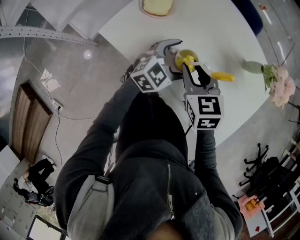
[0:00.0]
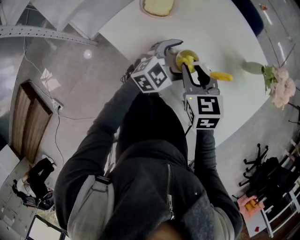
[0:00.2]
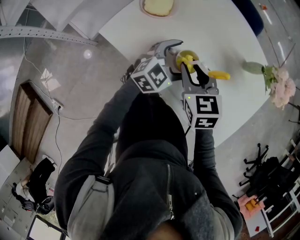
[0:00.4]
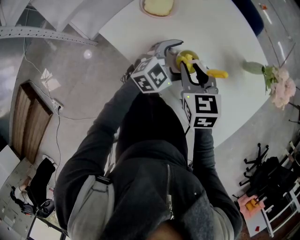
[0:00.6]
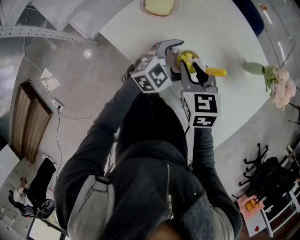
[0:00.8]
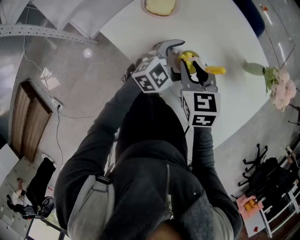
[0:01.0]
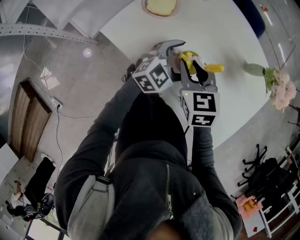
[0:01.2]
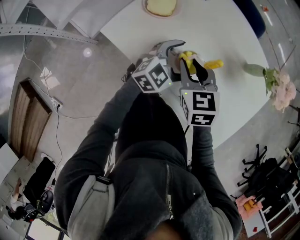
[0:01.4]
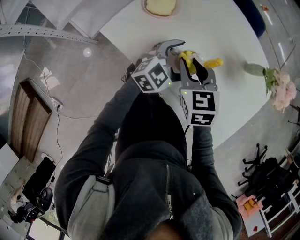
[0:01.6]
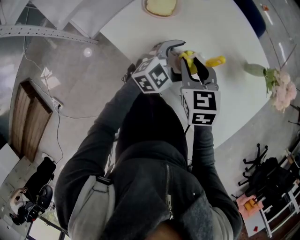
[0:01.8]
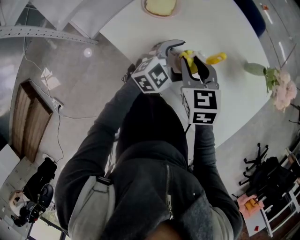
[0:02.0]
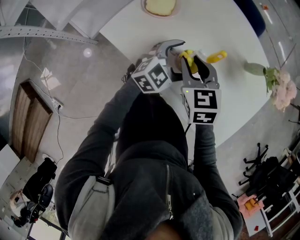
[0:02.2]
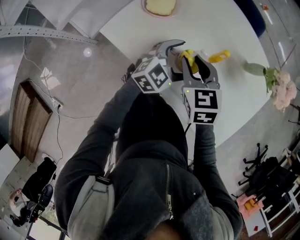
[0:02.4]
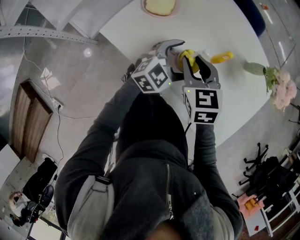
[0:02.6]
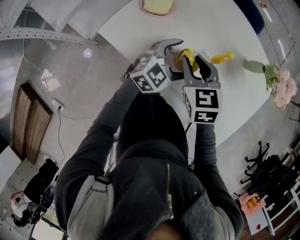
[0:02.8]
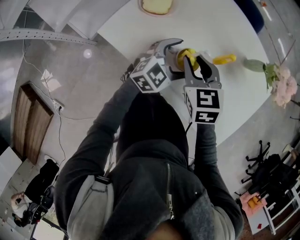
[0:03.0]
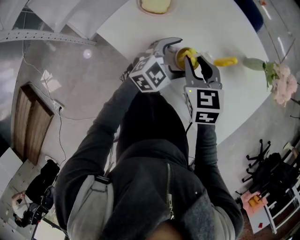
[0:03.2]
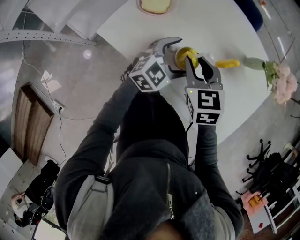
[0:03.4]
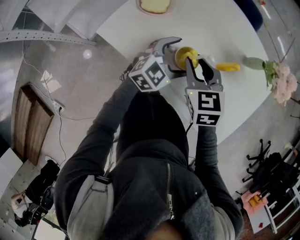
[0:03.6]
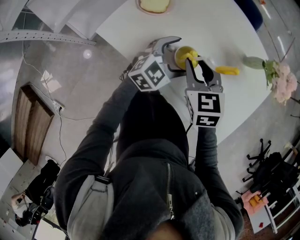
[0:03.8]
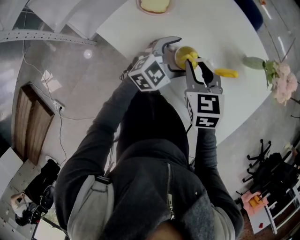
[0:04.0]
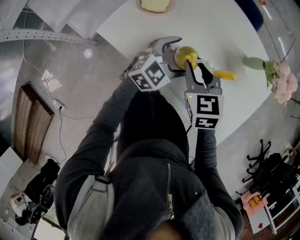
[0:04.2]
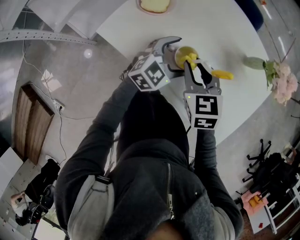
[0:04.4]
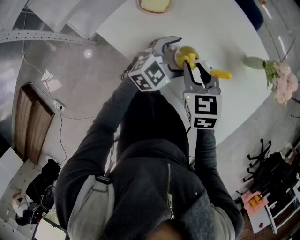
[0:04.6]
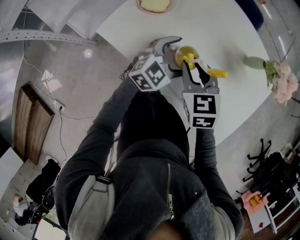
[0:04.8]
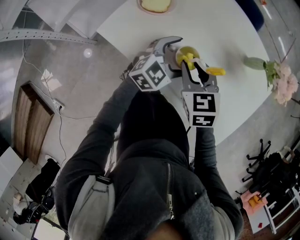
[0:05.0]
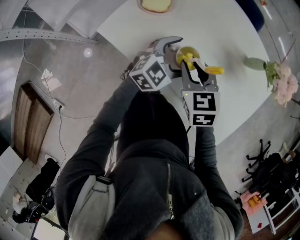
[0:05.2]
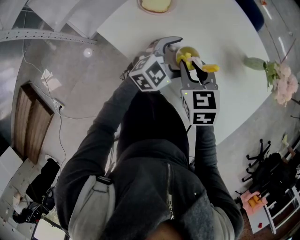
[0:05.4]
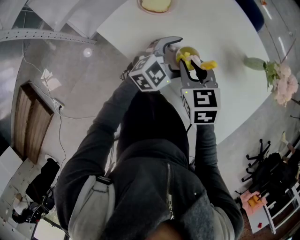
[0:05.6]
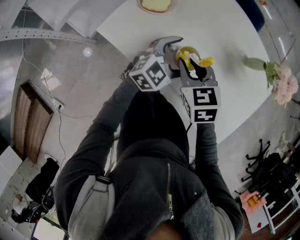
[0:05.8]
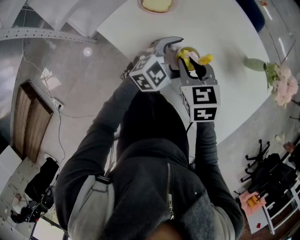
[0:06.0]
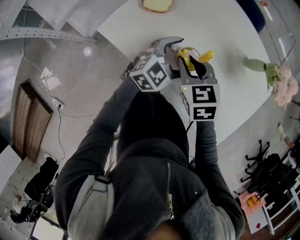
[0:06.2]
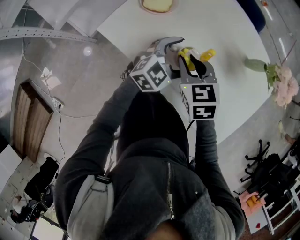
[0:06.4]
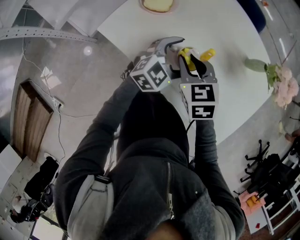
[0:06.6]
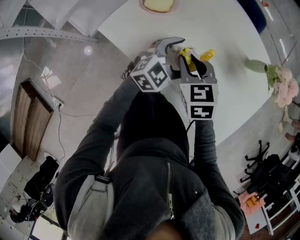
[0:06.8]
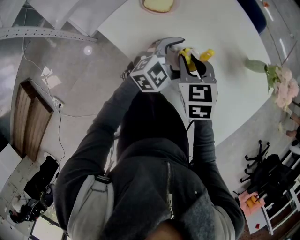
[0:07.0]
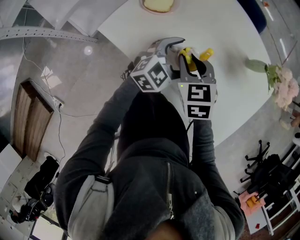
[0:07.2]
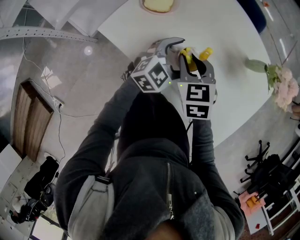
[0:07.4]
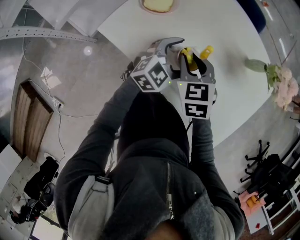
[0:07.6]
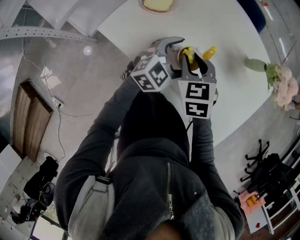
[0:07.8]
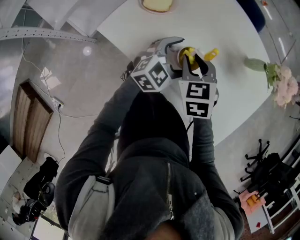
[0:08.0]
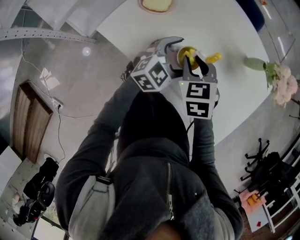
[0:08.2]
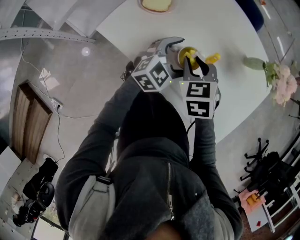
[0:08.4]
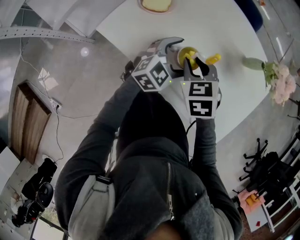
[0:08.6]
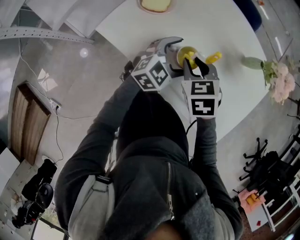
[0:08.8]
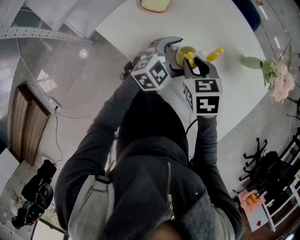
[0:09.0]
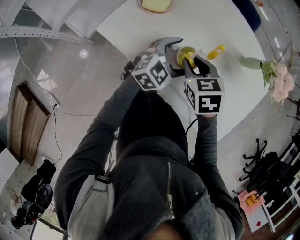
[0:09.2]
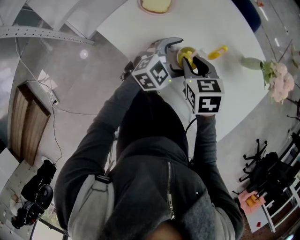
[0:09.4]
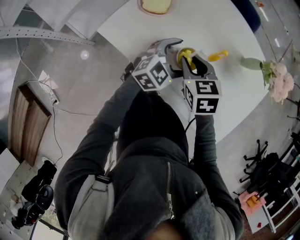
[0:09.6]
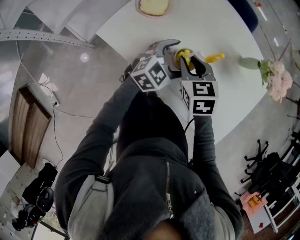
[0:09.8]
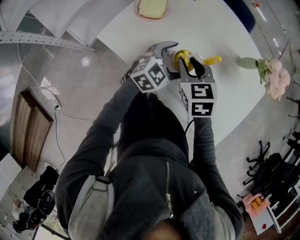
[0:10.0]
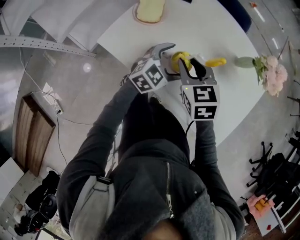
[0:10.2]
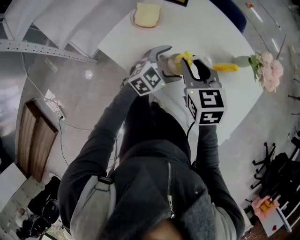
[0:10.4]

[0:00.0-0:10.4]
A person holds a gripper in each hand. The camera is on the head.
0:00.0 to 0:09.0: The grippers make only small movements.
0:09.0 to 0:10.4: The right gripper moves upward, roughly 10 cm, and swivels approximately 20 degrees.

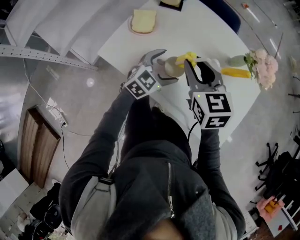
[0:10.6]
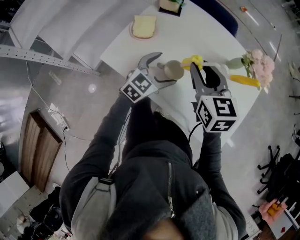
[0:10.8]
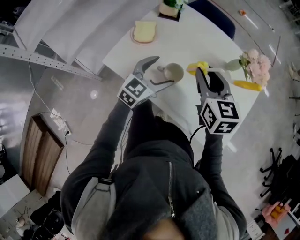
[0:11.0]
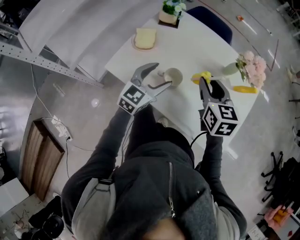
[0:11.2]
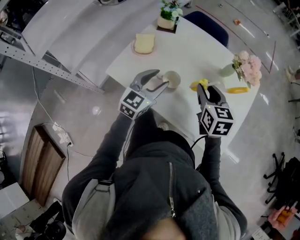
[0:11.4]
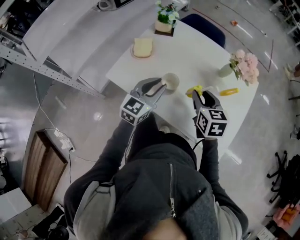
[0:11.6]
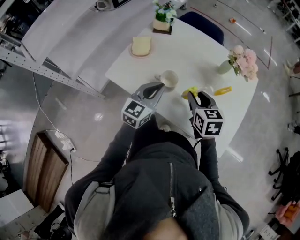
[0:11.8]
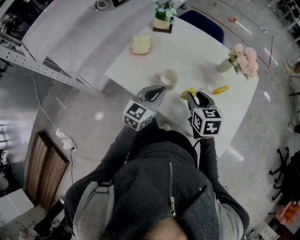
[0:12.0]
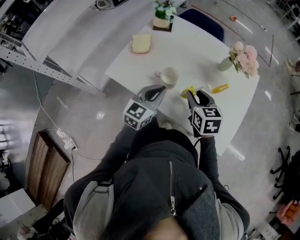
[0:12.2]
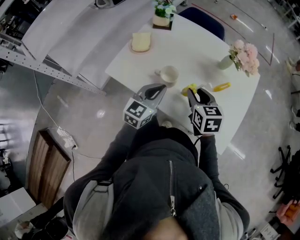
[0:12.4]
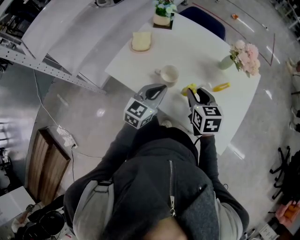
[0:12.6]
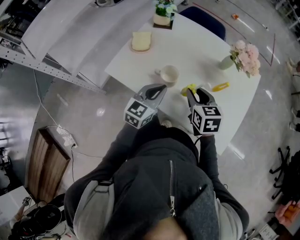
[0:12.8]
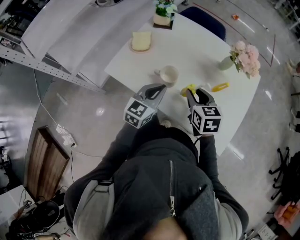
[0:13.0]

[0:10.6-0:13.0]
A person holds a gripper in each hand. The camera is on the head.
0:10.6 to 0:11.8: The right gripper moves to the right and downward, roughly 10 cm. Meanwhile the left gripper moves upward and backward, approximately 10 cm, turns by roughly 20 degrees, and closes its fingers.
0:11.8 to 0:13.0: There are only small adjustments of the grippers.

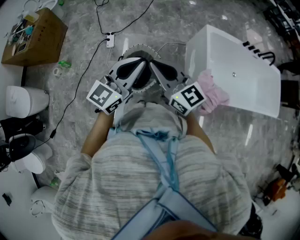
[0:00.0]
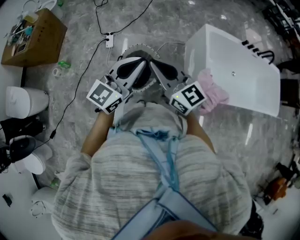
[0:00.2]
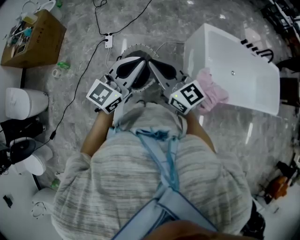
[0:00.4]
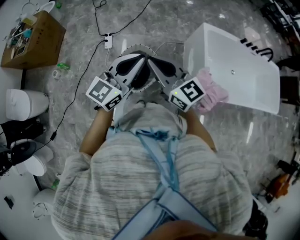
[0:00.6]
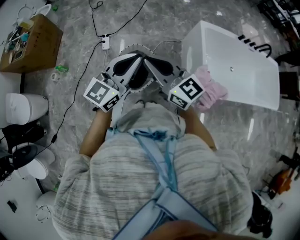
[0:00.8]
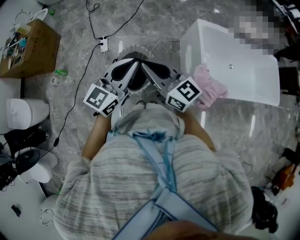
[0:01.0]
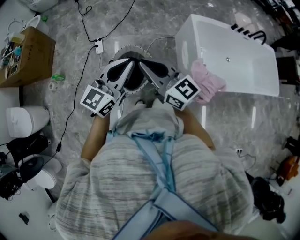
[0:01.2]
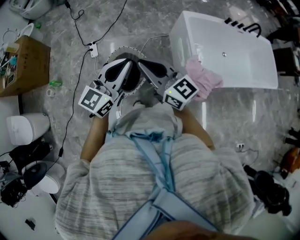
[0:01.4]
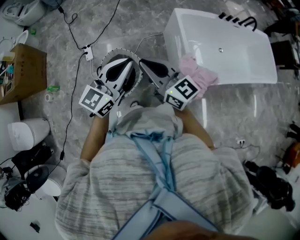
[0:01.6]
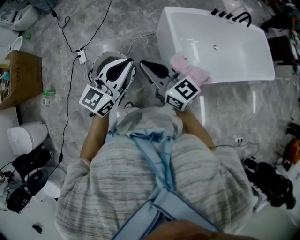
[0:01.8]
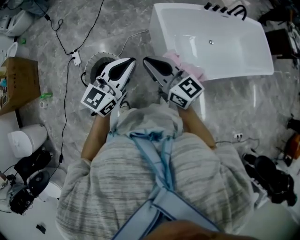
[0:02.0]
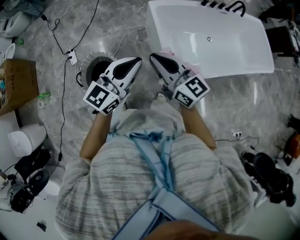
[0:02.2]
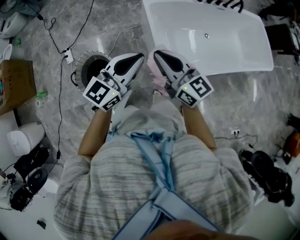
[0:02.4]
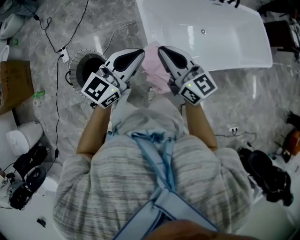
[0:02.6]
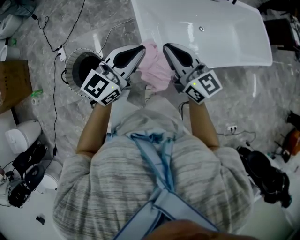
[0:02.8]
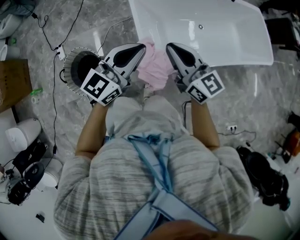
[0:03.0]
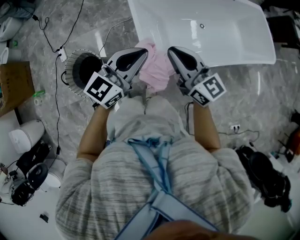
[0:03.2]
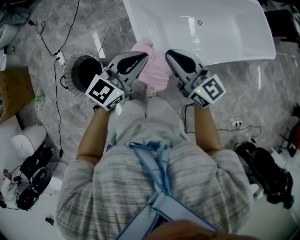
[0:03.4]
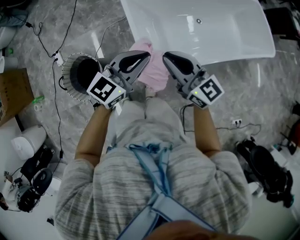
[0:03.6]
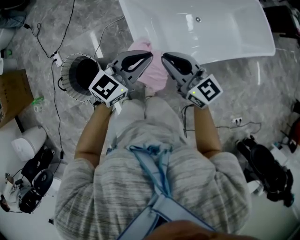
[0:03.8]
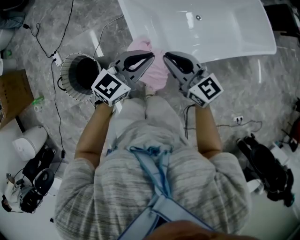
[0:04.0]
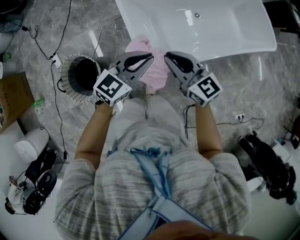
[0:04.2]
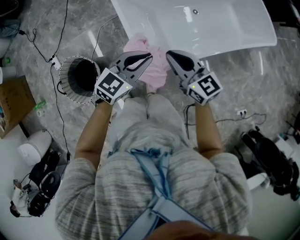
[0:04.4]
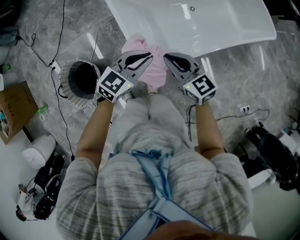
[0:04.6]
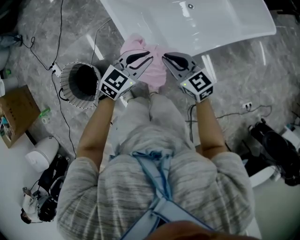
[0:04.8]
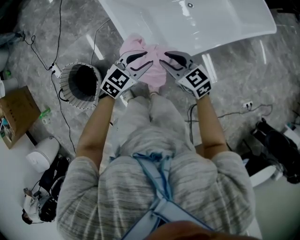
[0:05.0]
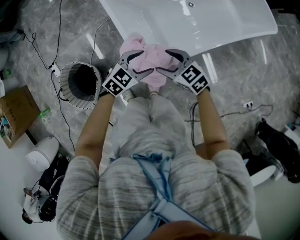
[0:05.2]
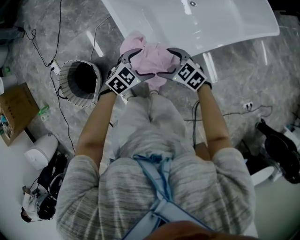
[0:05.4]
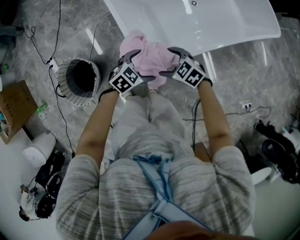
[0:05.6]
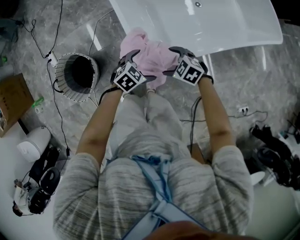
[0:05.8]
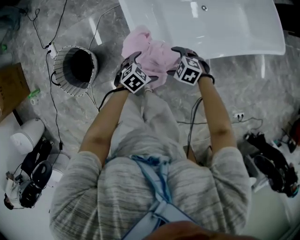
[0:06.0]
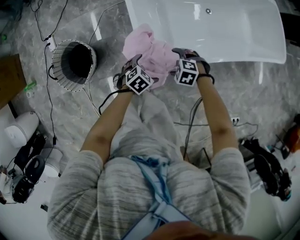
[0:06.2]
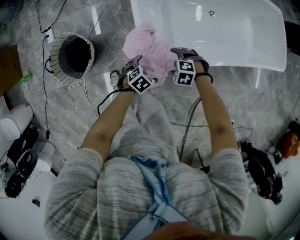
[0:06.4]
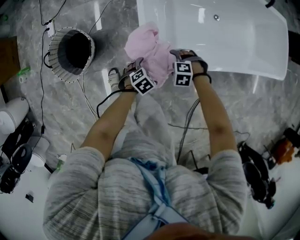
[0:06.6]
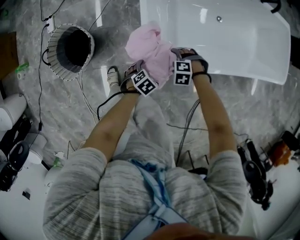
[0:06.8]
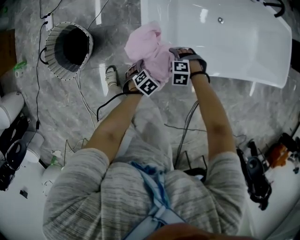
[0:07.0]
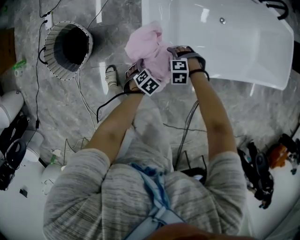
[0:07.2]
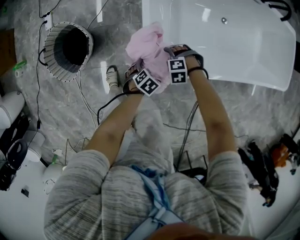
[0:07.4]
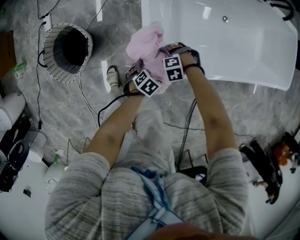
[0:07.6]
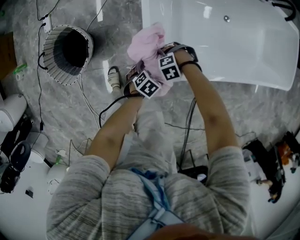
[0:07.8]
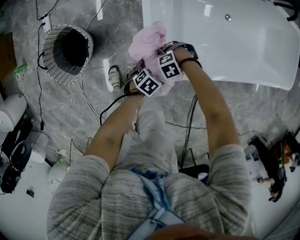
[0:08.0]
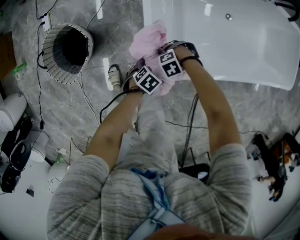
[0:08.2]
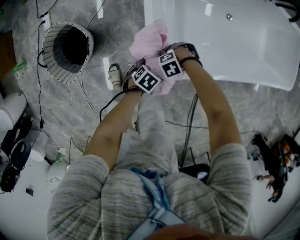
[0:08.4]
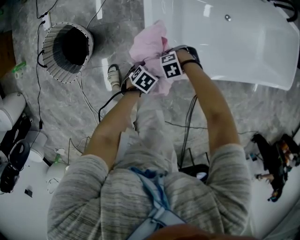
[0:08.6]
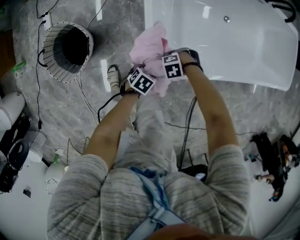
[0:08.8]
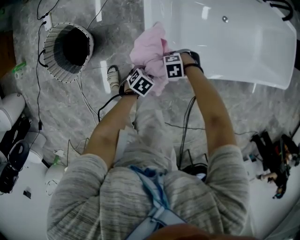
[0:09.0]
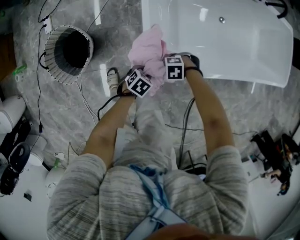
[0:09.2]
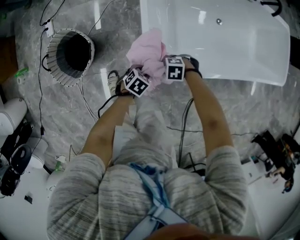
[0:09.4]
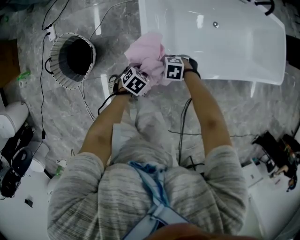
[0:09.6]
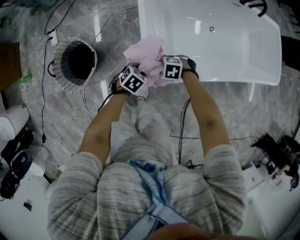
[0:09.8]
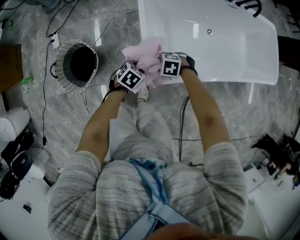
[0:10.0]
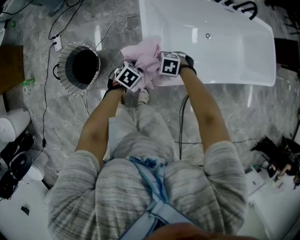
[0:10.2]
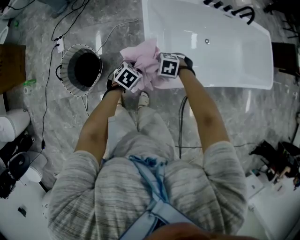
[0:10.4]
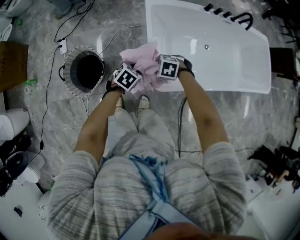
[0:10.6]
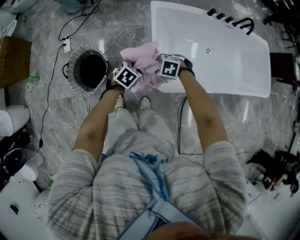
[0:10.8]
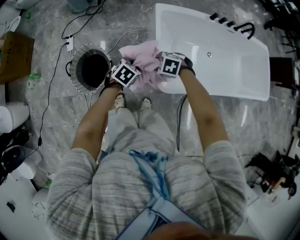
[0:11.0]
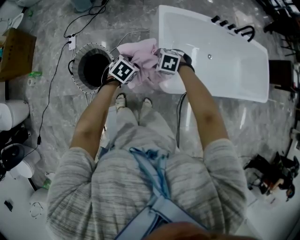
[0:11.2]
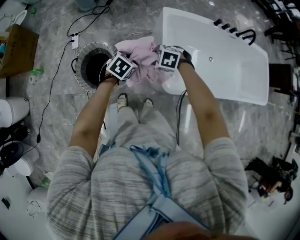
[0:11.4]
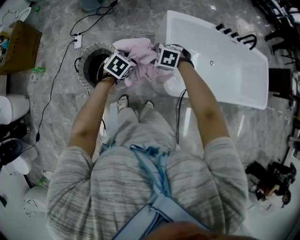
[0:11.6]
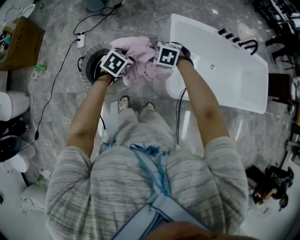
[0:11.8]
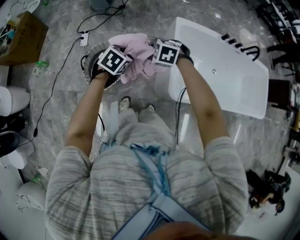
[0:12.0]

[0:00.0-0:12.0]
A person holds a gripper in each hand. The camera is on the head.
0:00.0 to 0:01.6: The grippers both shift to the right by about 10 cm.
0:01.6 to 0:03.0: The two grippers travel together, to the right, roughly 40 cm.
0:03.0 to 0:04.4: Both grippers travel together downward and to the right, approximately 15 cm. The left gripper rotates about 20 degrees.
0:04.4 to 0:06.0: Both grippers travel together downward, approximately 25 cm. The right gripper tips its fingers downward by approximately 50 degrees, and opens its fingers, while the left gripper angles its fingers downward, by roughly 40 degrees, and opens up.
0:06.0 to 0:07.6: The two grippers go approximately 15 cm downward. The right gripper rolls counterclockwise, seen from behind, by some 40 degrees. Meanwhile the left gripper changes its angle by about 30 degrees.
0:07.6 to 0:09.0: The right gripper closes up, while the left gripper closes.
0:09.0 to 0:10.4: Both grippers travel together upward, roughly 20 cm. The right gripper rotates some 20 degrees.
0:10.4 to 0:12.0: The right gripper changes place by roughly 30 cm. Meanwhile the left gripper changes place by roughly 30 cm.
